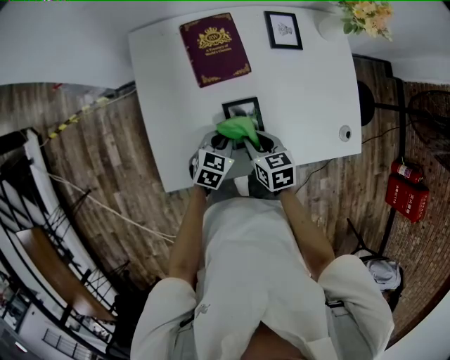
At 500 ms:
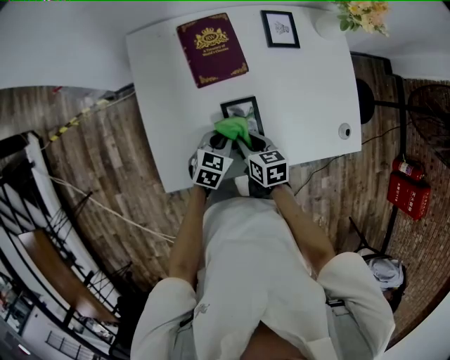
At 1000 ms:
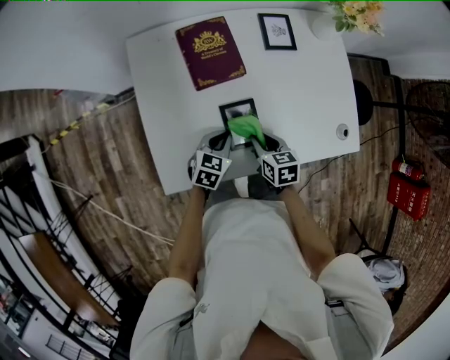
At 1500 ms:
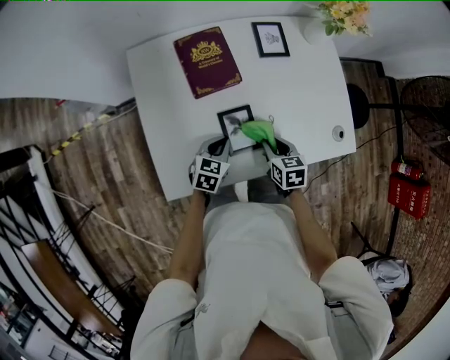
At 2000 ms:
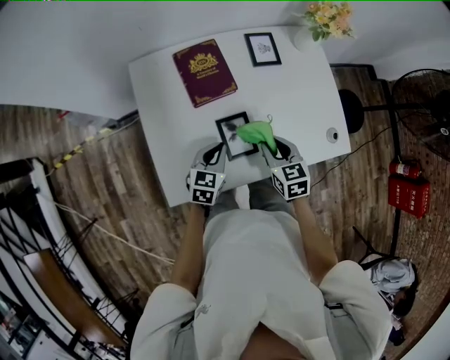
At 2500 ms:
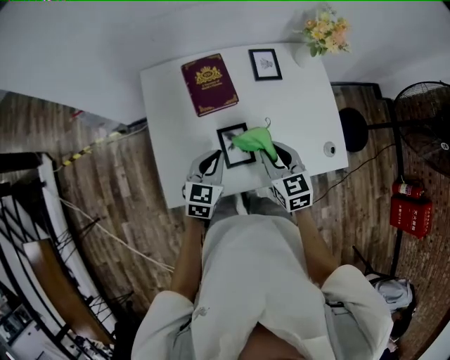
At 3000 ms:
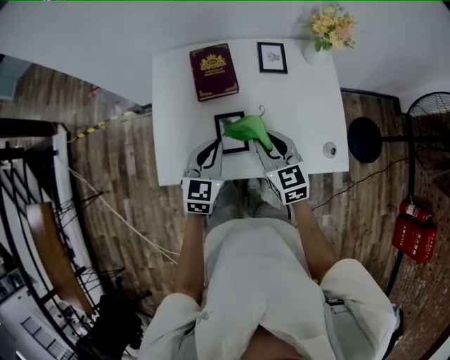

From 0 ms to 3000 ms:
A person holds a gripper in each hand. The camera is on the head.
From 0 ms to 1500 ms: The right gripper moves to the right, about 10 cm.
From 1500 ms to 3000 ms: The grippers both shift upward by some 20 cm. The left gripper rotates about 30 degrees; the right gripper changes its angle by approximately 40 degrees.

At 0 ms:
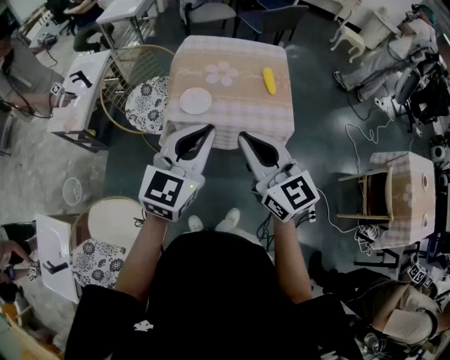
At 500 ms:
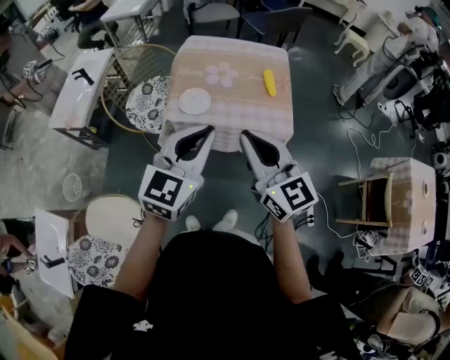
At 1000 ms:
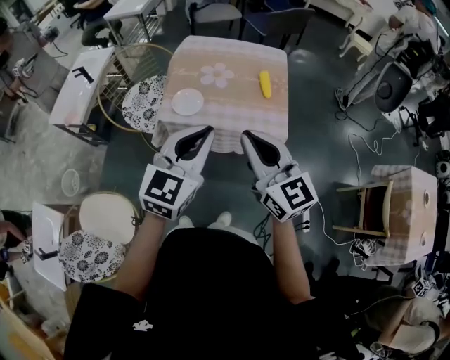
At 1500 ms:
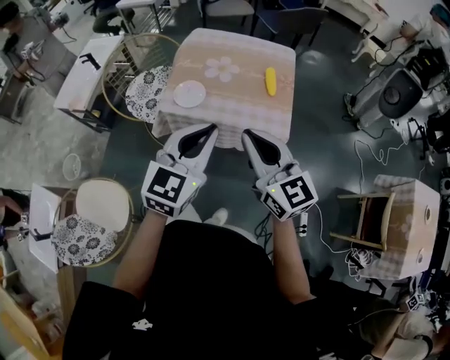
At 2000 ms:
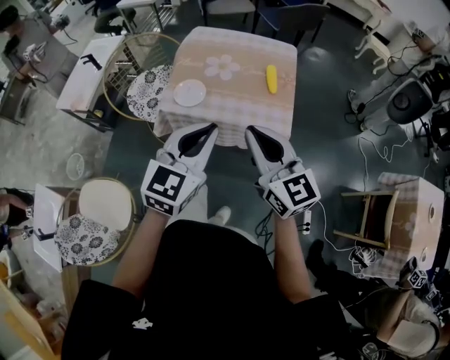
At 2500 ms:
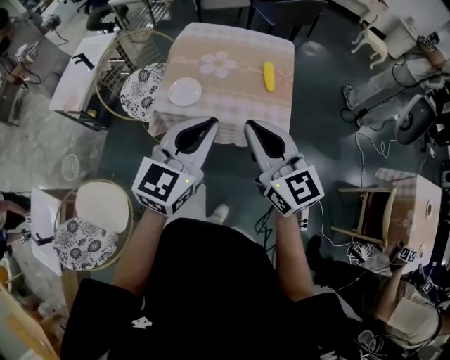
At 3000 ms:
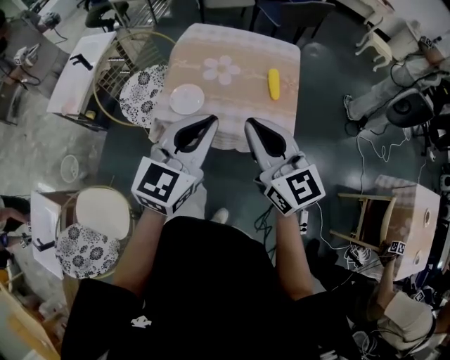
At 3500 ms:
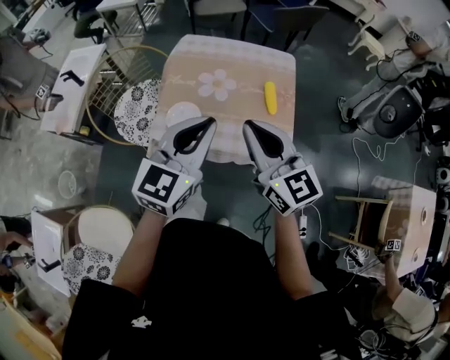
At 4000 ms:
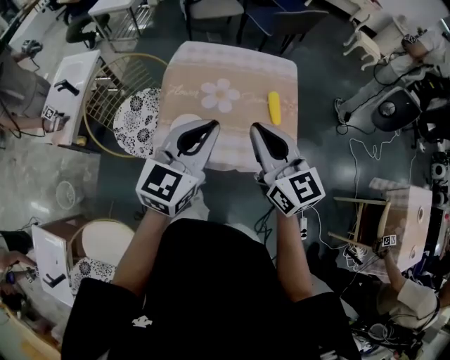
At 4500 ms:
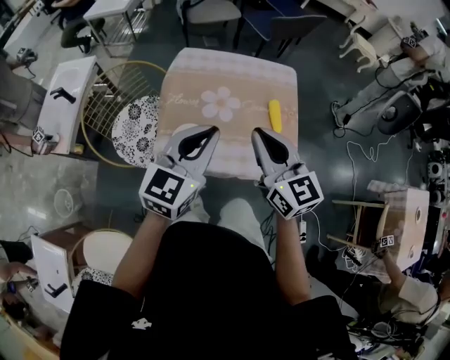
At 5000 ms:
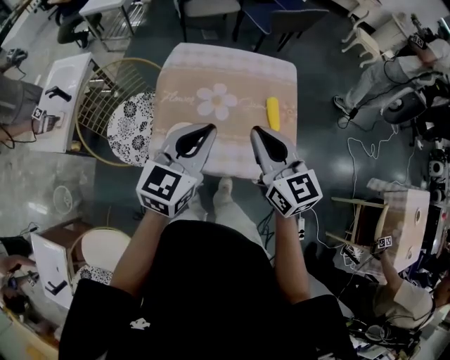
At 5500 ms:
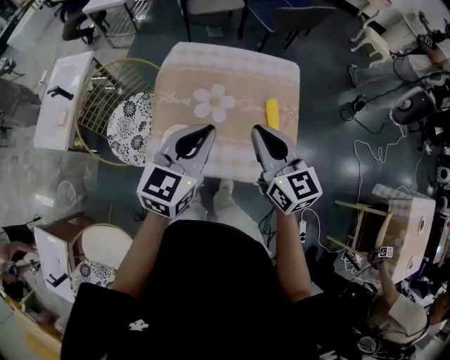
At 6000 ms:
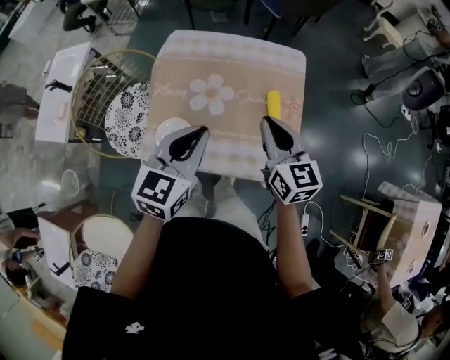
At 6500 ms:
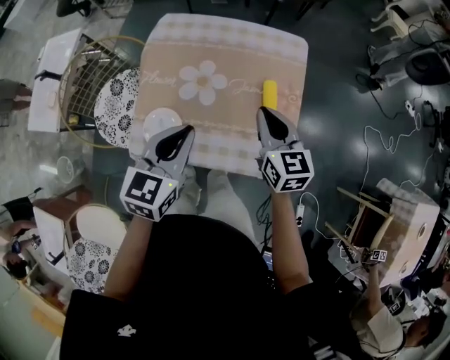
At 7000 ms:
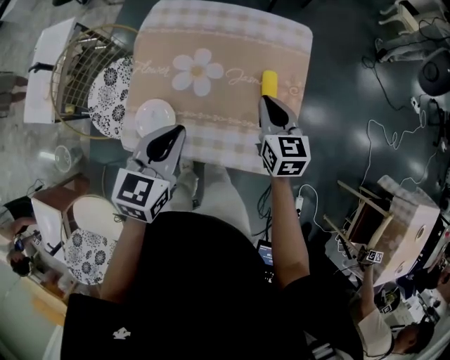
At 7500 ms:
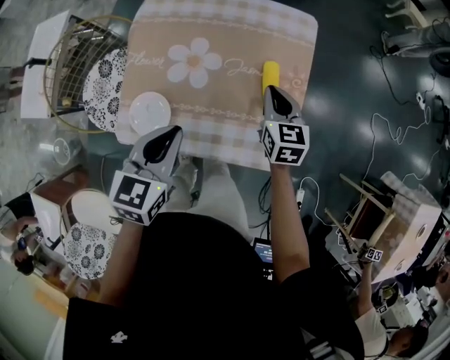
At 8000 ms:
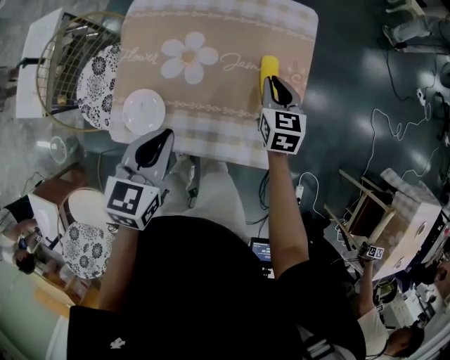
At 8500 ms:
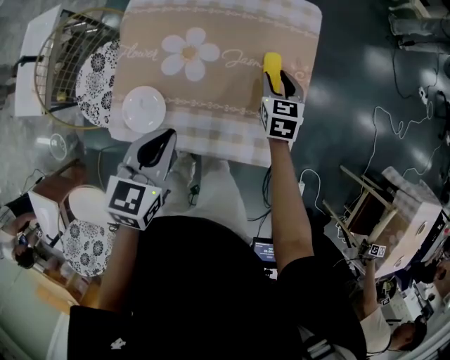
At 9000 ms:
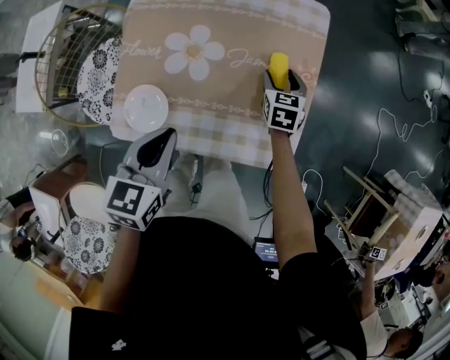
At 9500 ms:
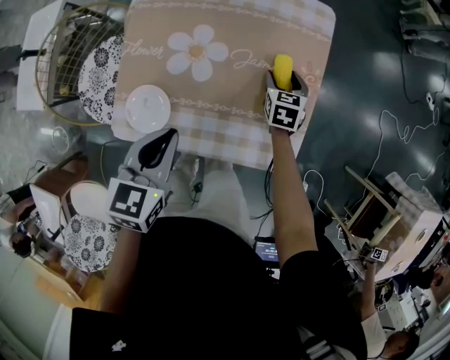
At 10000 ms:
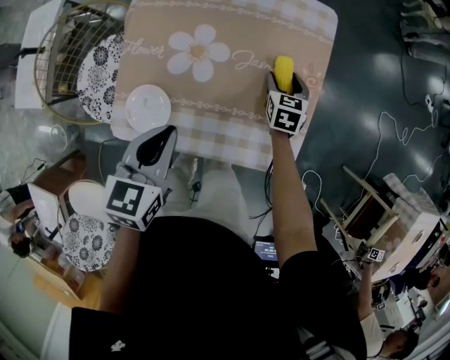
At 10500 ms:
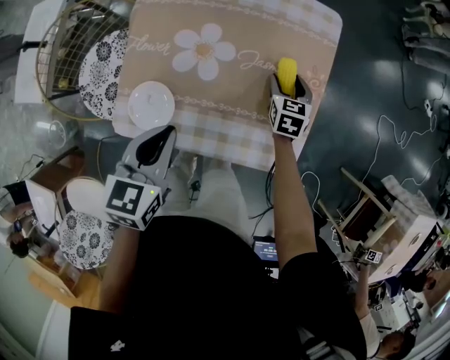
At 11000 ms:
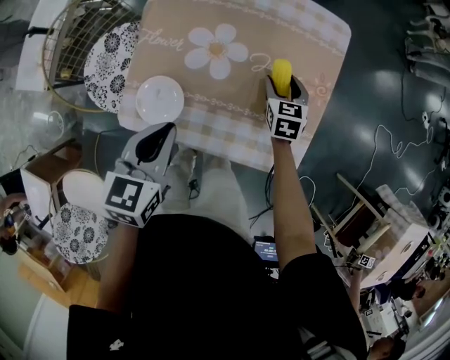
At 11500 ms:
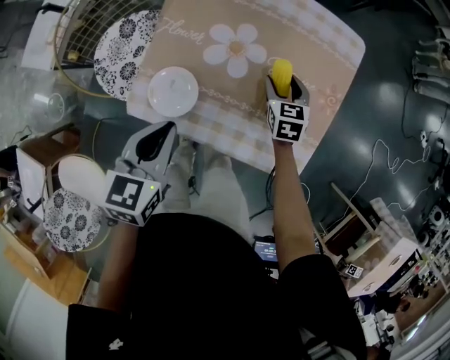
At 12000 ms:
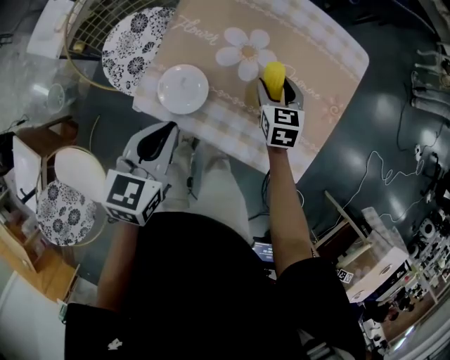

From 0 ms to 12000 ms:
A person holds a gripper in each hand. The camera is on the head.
From 0 ms to 2000 ms: The two grippers go roughly 10 cm to the right.
From 2000 ms to 4000 ms: The two grippers go some 20 cm forward.
From 4000 ms to 6000 ms: The right gripper heads forward, downward and to the right, covering about 20 cm. The left gripper is displaced forward and downward by some 15 cm.
From 6000 ms to 8000 ms: The left gripper is displaced downward by about 10 cm; the right gripper travels downward and forward by about 25 cm, and turns by roughly 20 degrees.
From 8000 ms to 10000 ms: The right gripper shifts roughly 10 cm downward, and opens.
From 10000 ms to 12000 ms: The right gripper moves to the left and upward, about 20 cm, and changes its angle by roughly 20 degrees, while the left gripper shifts roughly 10 cm to the left and backward.

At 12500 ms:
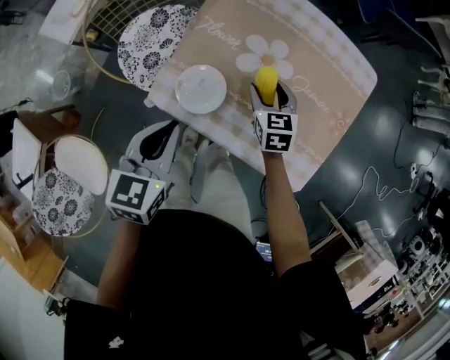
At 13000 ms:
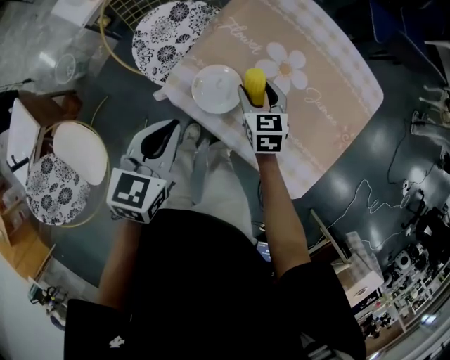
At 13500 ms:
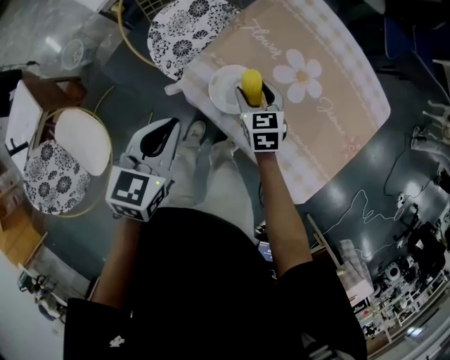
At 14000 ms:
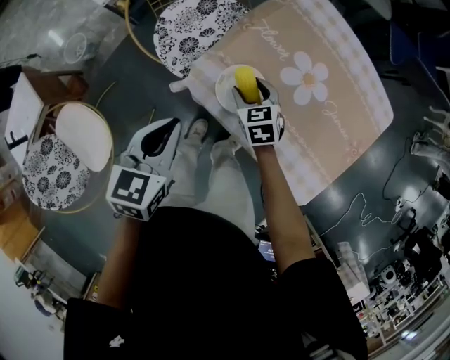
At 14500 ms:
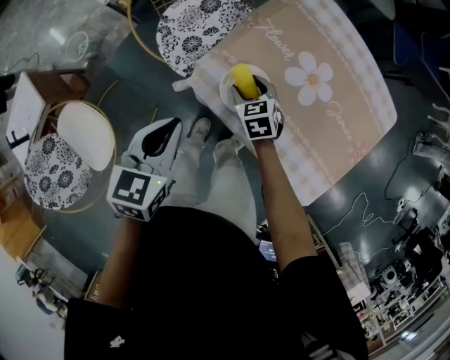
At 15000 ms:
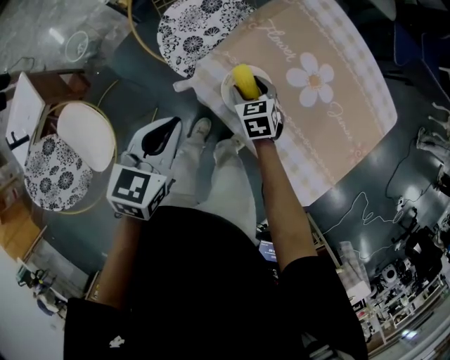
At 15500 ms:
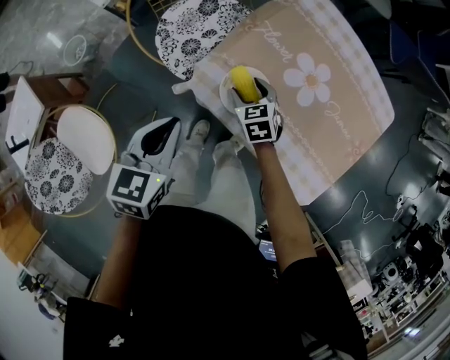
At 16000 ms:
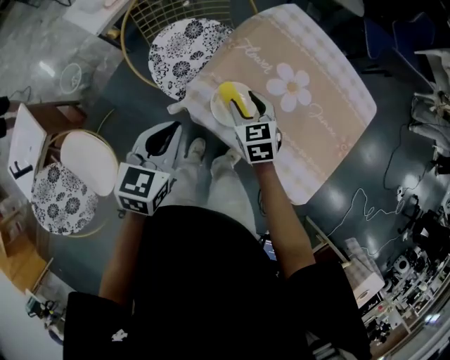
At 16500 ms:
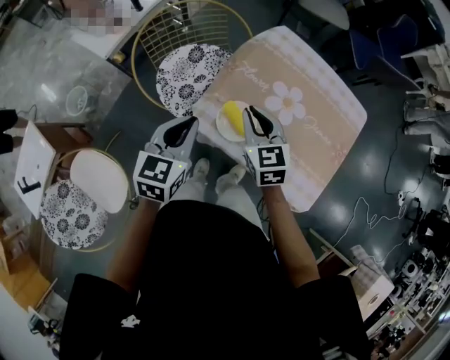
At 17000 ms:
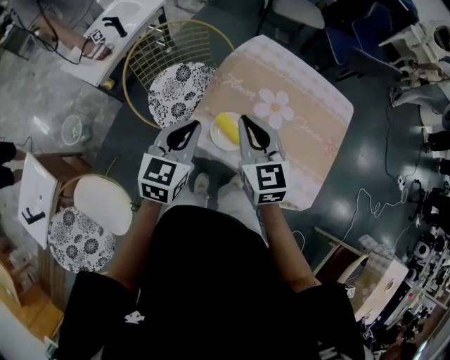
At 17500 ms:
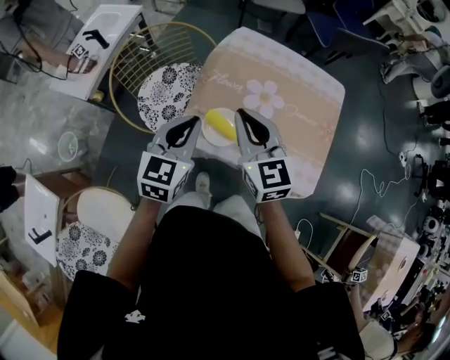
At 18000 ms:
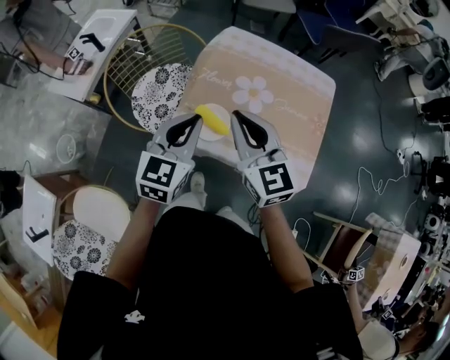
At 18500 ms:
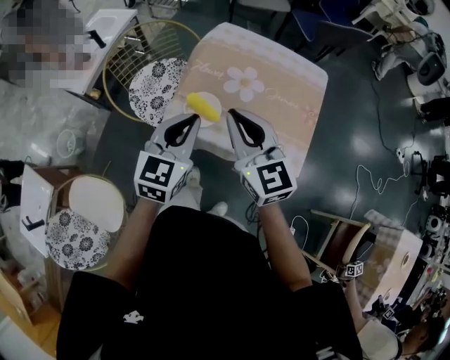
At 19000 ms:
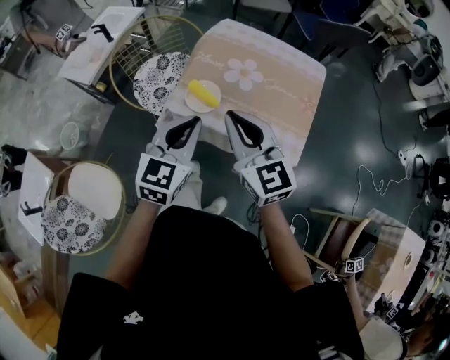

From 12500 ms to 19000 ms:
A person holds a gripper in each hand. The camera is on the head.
From 12500 ms to 14500 ms: The left gripper is displaced to the left by approximately 10 cm, while the right gripper moves to the left, about 20 cm, and rotates approximately 30 degrees.
From 14500 ms to 17000 ms: The left gripper moves upward and forward, approximately 10 cm, and swivels some 20 degrees; the right gripper shifts about 30 cm upward, tilts its fingers approximately 30 degrees upward, and closes.
From 17000 ms to 19000 ms: The left gripper shifts some 20 cm backward and to the right. Meanwhile the right gripper heads backward, to the right and upward, covering about 25 cm.

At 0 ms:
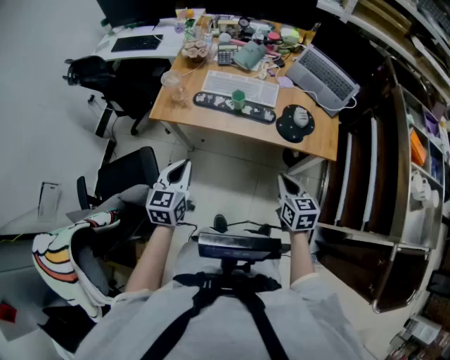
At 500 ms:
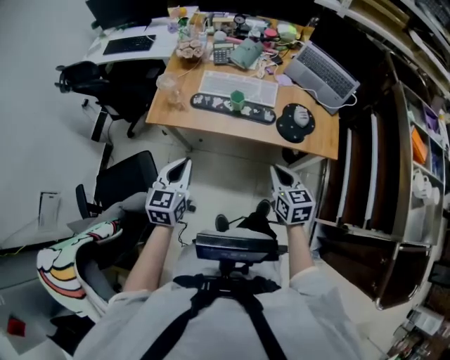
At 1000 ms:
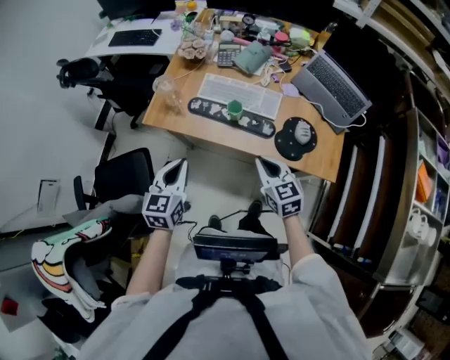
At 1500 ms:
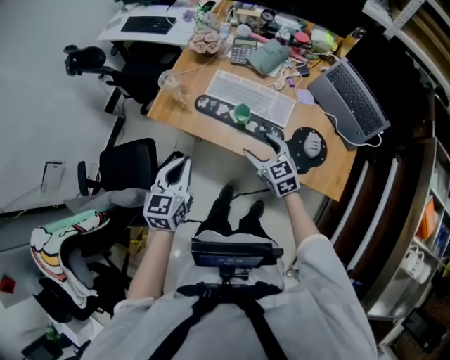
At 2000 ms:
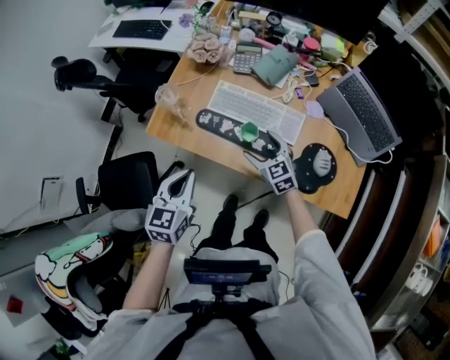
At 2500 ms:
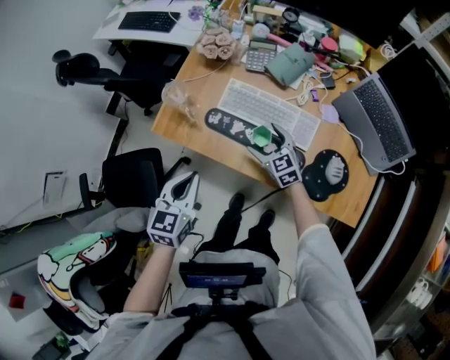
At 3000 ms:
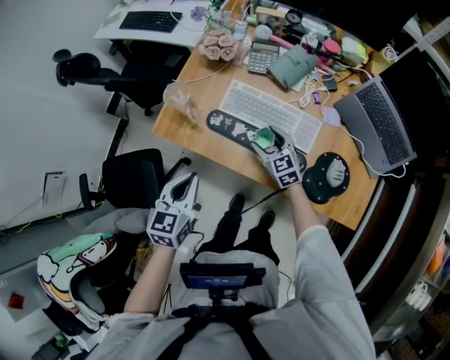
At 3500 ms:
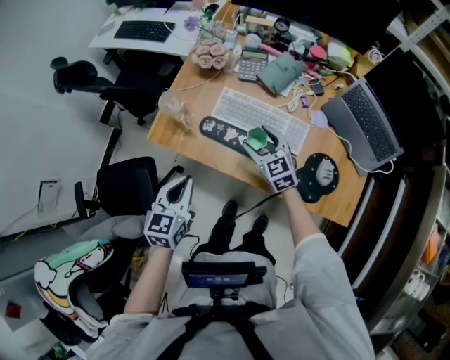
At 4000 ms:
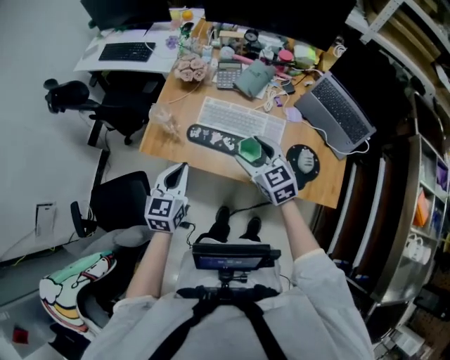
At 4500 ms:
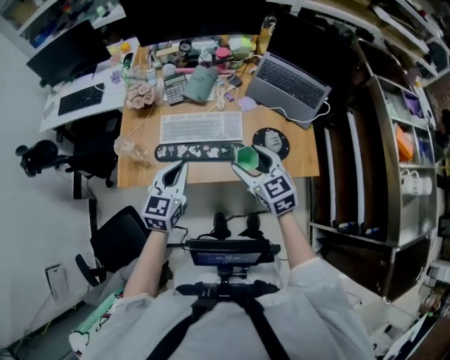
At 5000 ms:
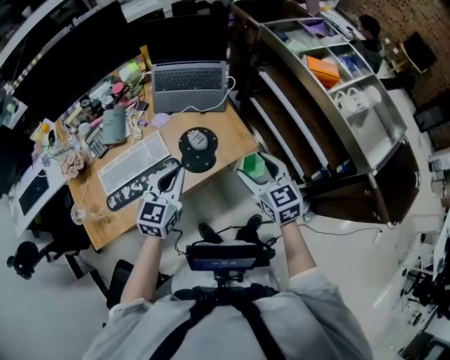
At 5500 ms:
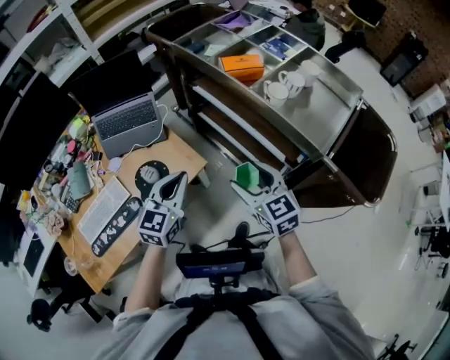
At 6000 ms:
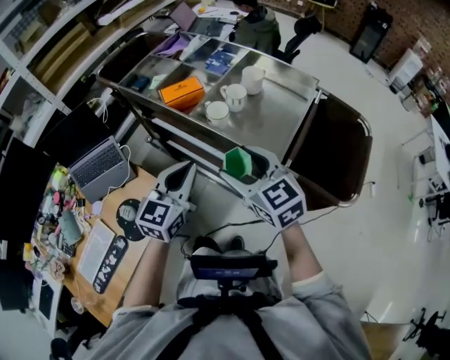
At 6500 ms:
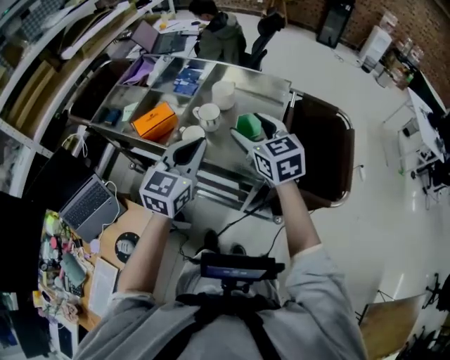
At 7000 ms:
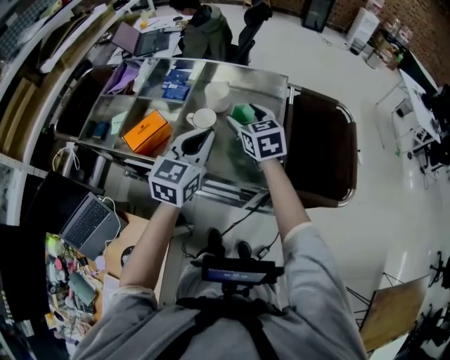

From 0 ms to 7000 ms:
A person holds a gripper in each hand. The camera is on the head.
From 0 ms to 2000 ms: The right gripper heads forward, covering some 35 cm, turns by some 40 degrees, and opens, while the left gripper shifts about 15 cm forward.
From 2000 ms to 3500 ms: The right gripper travels forward by approximately 5 cm.
From 3500 ms to 5000 ms: The left gripper changes place by some 35 cm, and rotates some 60 degrees, while the right gripper changes place by about 50 cm, and turns by approximately 60 degrees.
From 5000 ms to 7000 ms: Both grippers are carried some 60 cm. The right gripper swivels about 50 degrees, while the left gripper changes its angle by about 50 degrees.
